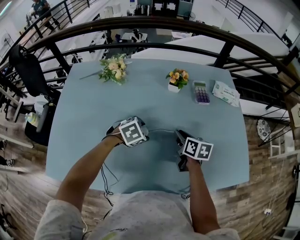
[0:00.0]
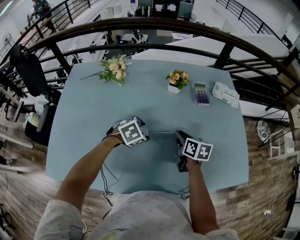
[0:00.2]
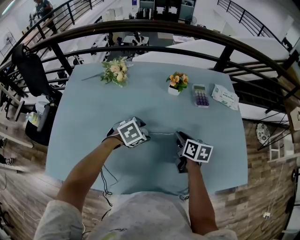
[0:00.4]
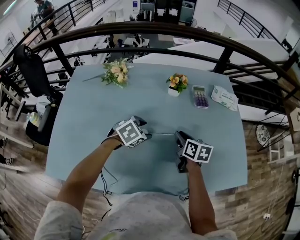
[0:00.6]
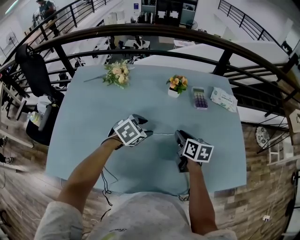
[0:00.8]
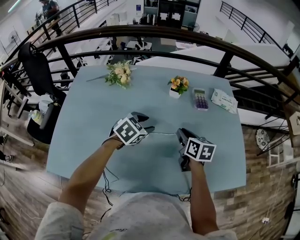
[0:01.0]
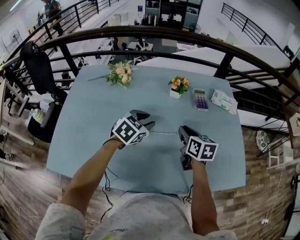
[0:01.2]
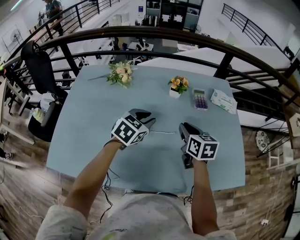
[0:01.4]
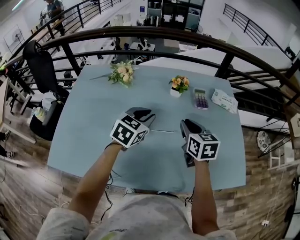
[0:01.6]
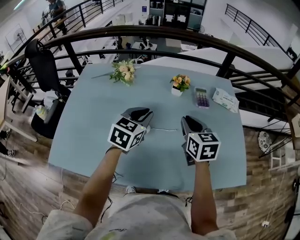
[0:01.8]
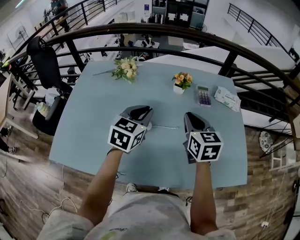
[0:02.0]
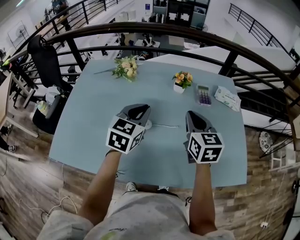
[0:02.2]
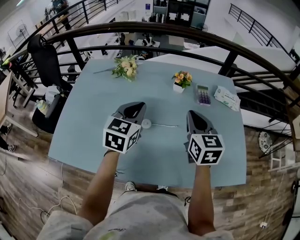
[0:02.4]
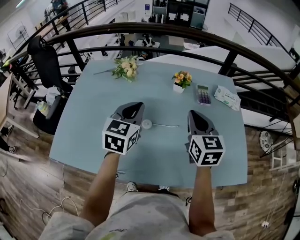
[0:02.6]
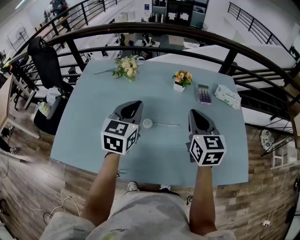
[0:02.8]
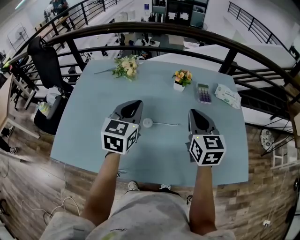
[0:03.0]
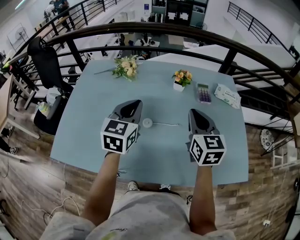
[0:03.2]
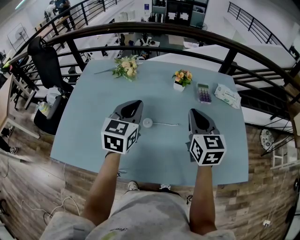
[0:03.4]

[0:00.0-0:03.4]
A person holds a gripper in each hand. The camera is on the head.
0:00.0 to 0:01.6: Both grippers travel together upward, roughly 15 cm. The right gripper rotates approximately 30 degrees; the left gripper angles its fingers upward, by approximately 30 degrees, and closes its fingers.
0:01.6 to 0:03.4: The left gripper heads upward and to the left, covering roughly 10 cm, and changes its angle by roughly 20 degrees; the right gripper heads upward, covering about 5 cm.

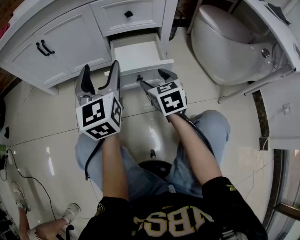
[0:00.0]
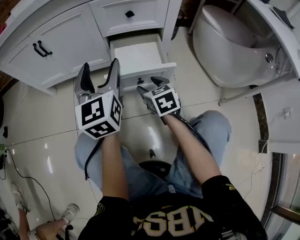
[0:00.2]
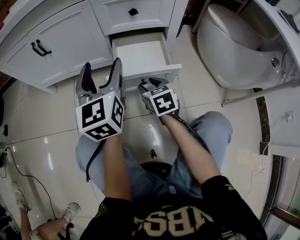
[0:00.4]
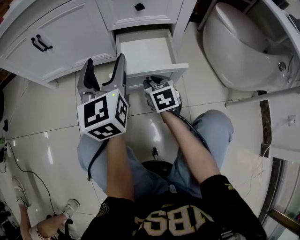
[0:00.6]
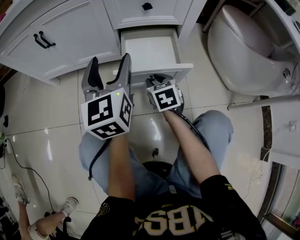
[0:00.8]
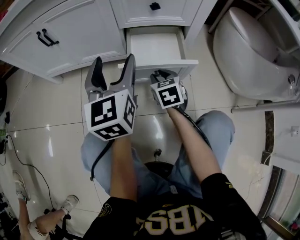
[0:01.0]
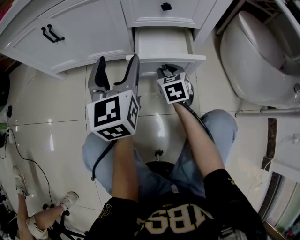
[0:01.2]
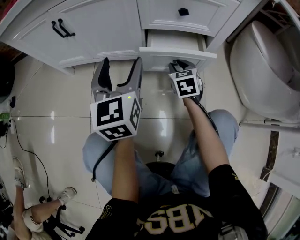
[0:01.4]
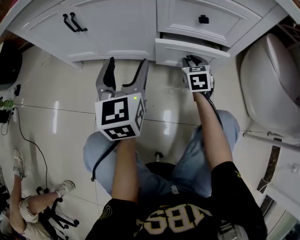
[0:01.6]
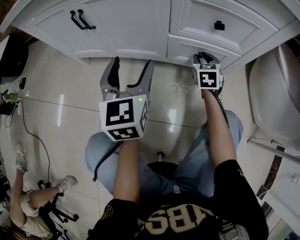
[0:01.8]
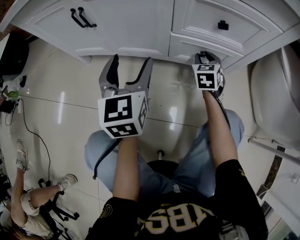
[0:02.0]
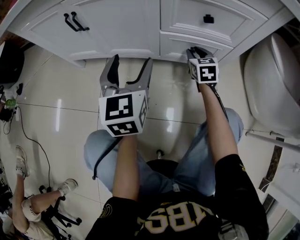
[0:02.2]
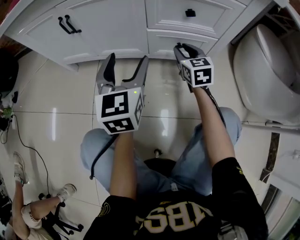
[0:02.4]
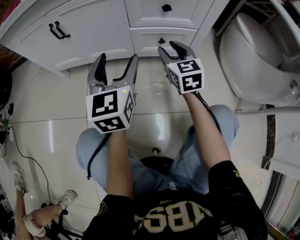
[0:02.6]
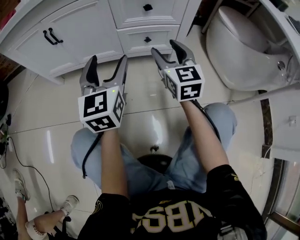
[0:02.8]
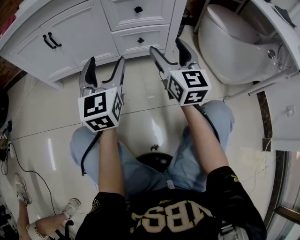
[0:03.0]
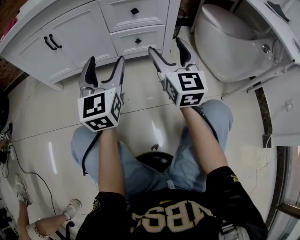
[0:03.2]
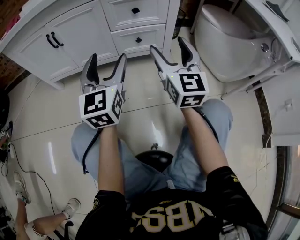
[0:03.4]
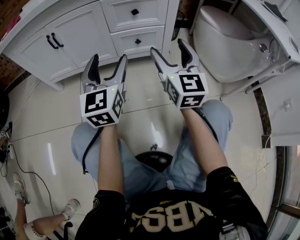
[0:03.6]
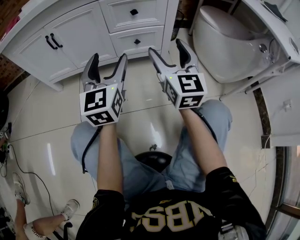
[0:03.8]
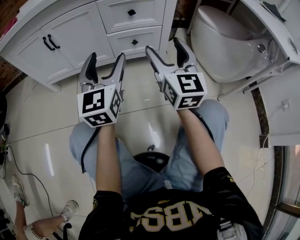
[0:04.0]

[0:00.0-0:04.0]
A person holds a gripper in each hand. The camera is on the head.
0:00.0 to 0:01.4: The right gripper shifts some 20 cm forward and downward, and closes up, while the left gripper moves forward and downward, roughly 10 cm.
0:01.4 to 0:02.6: The right gripper travels upward by some 15 cm, and turns by roughly 20 degrees.
0:02.6 to 0:04.0: The left gripper travels backward and upward by roughly 10 cm. Meanwhile the right gripper moves backward and upward, approximately 20 cm, turns by approximately 30 degrees, and opens up.

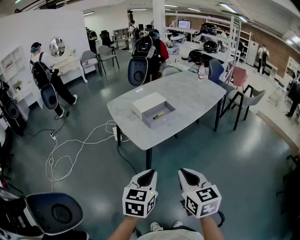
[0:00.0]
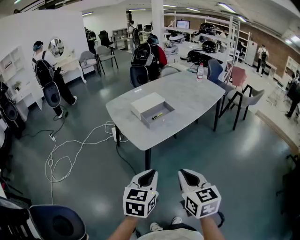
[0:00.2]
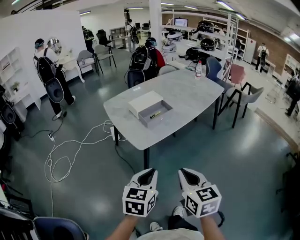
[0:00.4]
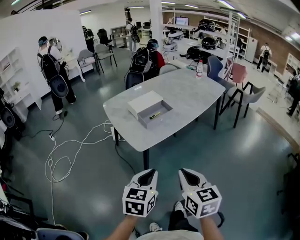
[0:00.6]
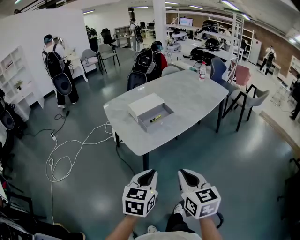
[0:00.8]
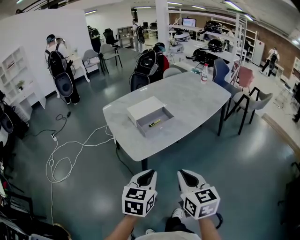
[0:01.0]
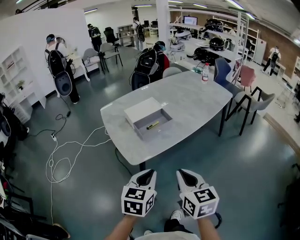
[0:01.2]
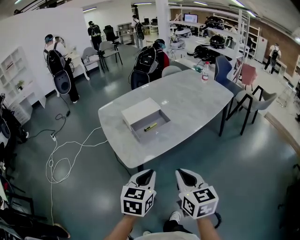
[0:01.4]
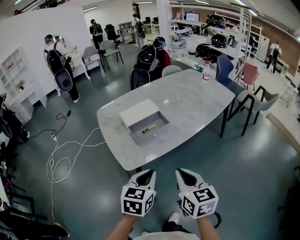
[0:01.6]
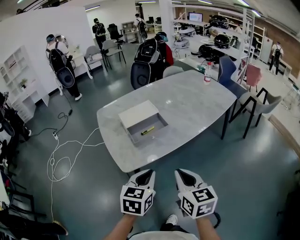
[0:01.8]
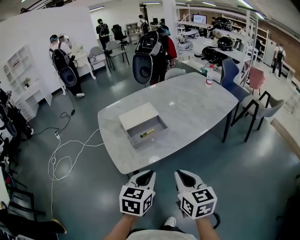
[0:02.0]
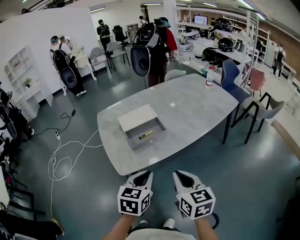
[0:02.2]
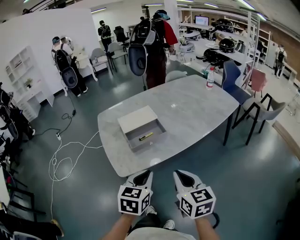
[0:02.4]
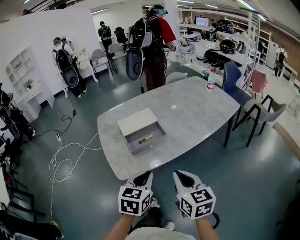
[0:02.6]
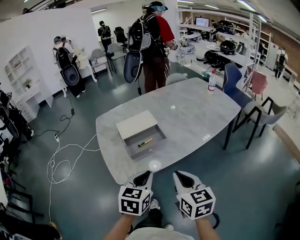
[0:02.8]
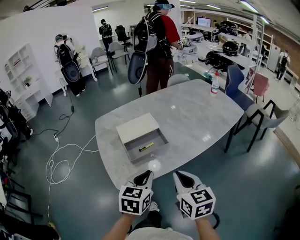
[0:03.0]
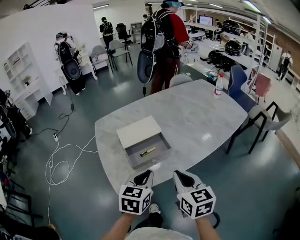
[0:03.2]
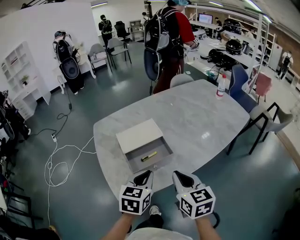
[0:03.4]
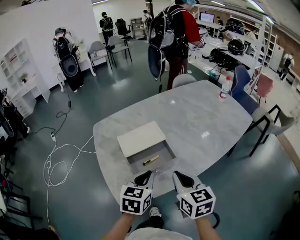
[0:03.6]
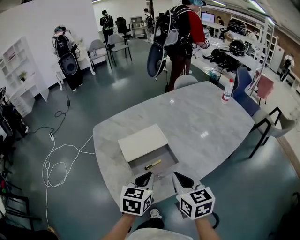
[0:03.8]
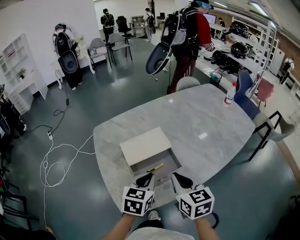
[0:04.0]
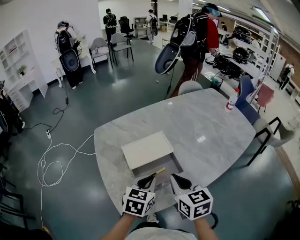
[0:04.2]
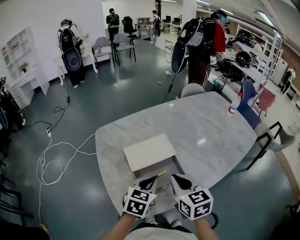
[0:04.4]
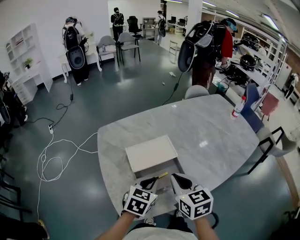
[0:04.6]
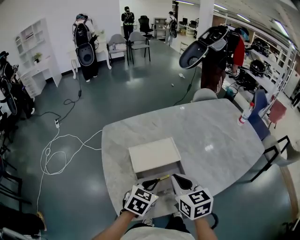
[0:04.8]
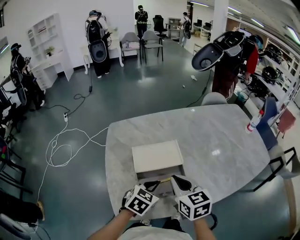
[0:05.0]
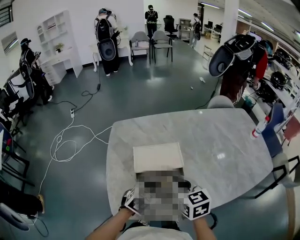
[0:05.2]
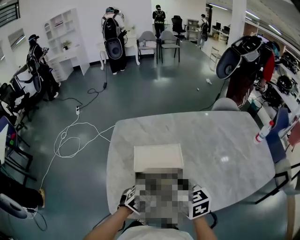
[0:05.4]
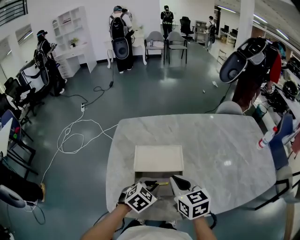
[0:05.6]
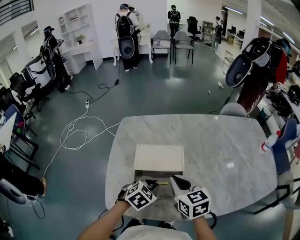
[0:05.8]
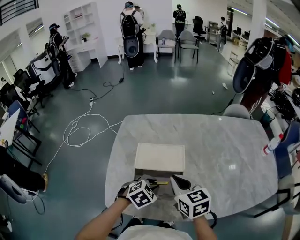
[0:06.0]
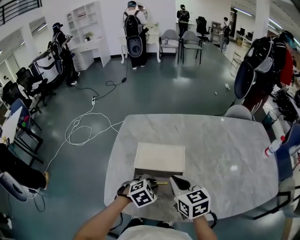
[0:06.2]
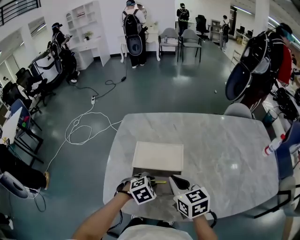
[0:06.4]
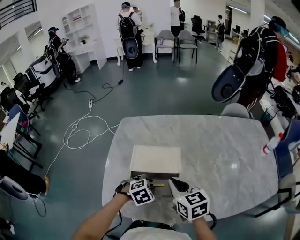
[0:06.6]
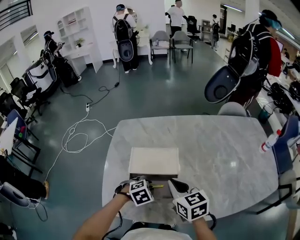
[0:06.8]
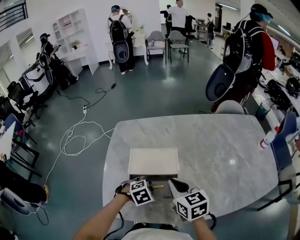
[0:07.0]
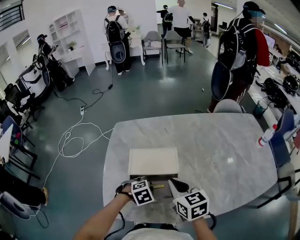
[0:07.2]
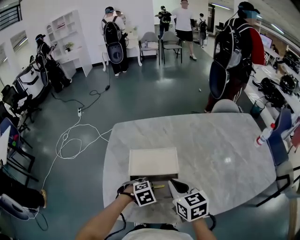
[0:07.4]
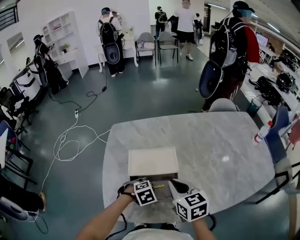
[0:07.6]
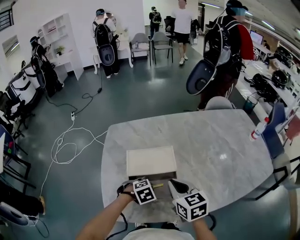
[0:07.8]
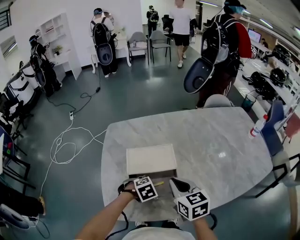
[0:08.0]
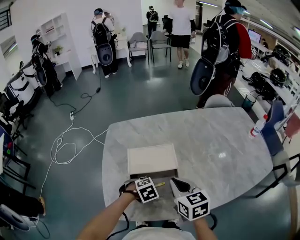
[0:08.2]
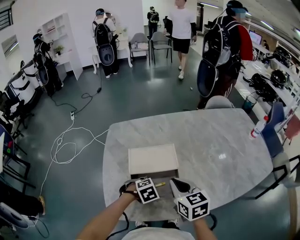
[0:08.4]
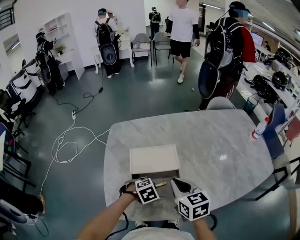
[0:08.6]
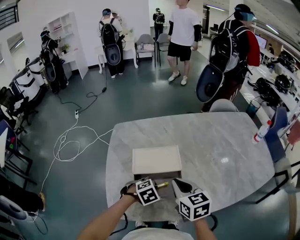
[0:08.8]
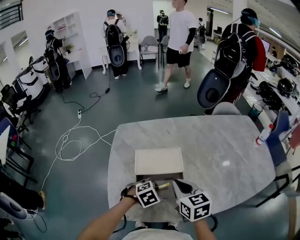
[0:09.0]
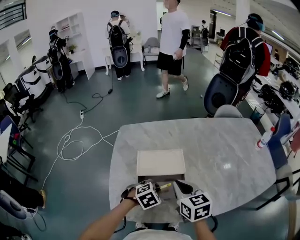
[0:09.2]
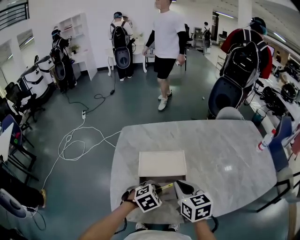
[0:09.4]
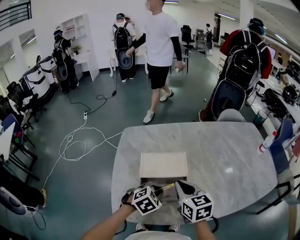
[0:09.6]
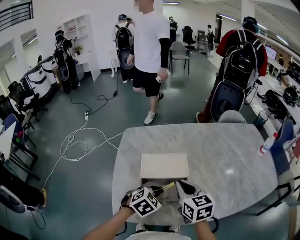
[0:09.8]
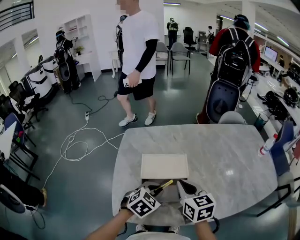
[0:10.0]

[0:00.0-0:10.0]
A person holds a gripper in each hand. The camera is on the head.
0:00.0 to 0:01.4: The two grippers go approximately 20 cm forward and to the right.
0:01.4 to 0:02.8: Both grippers travel together forward and to the right, approximately 10 cm.
0:02.8 to 0:04.2: Both grippers move forward, approximately 20 cm.
0:04.2 to 0:05.8: The left gripper moves downward, some 5 cm, and changes its angle by roughly 20 degrees; the right gripper moves forward, some 10 cm, and changes its angle by some 30 degrees.
0:05.8 to 0:07.2: The left gripper shifts about 5 cm downward, and turns by about 30 degrees.
0:07.2 to 0:08.6: The grippers move only a little.
0:08.6 to 0:10.0: The left gripper heads upward, covering roughly 10 cm, and rotates approximately 30 degrees.

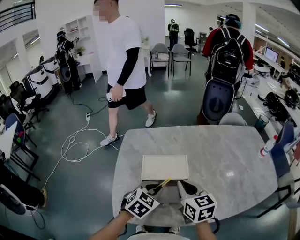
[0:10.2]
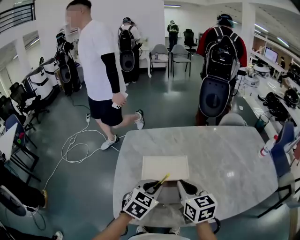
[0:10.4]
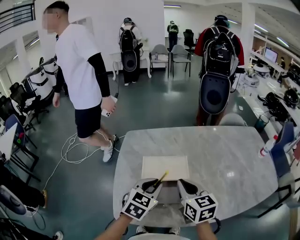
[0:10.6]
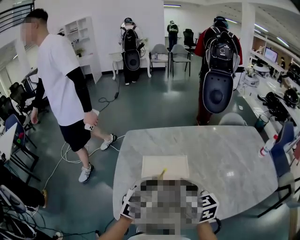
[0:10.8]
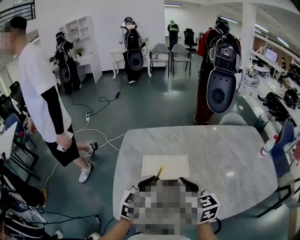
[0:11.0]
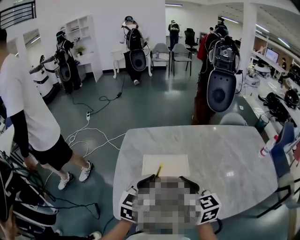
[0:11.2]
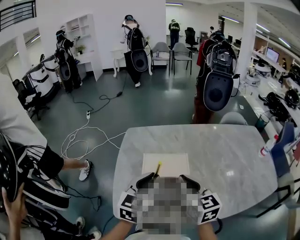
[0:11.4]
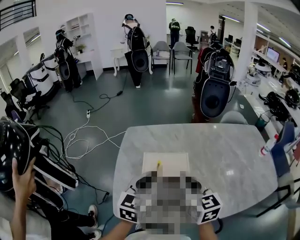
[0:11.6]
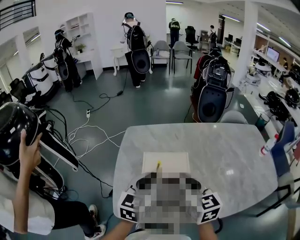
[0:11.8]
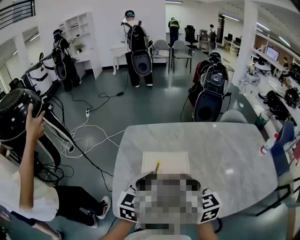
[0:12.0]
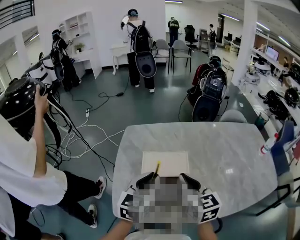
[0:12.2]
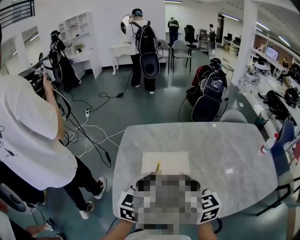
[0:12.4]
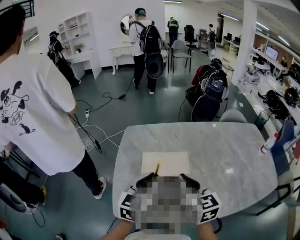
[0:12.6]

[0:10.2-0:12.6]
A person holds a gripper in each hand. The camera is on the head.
0:10.2 to 0:11.4: The left gripper moves upward, about 10 cm, and swivels about 30 degrees.
0:11.4 to 0:12.6: The grippers move only a little.

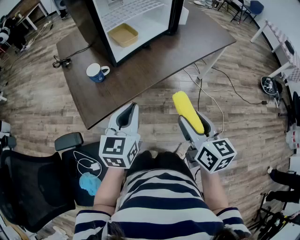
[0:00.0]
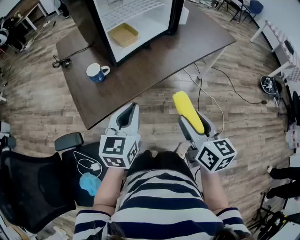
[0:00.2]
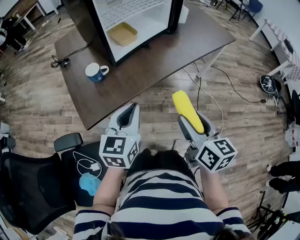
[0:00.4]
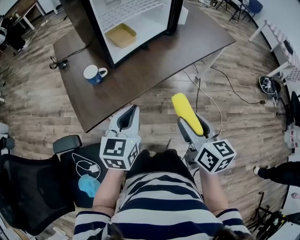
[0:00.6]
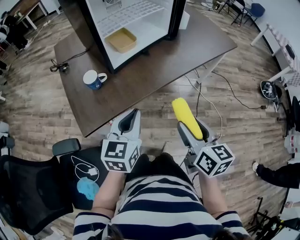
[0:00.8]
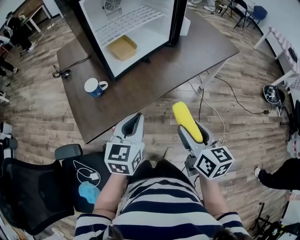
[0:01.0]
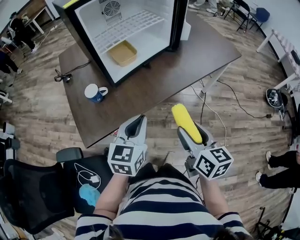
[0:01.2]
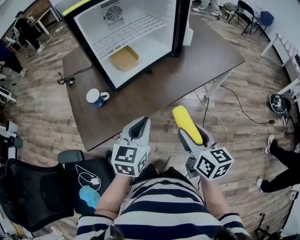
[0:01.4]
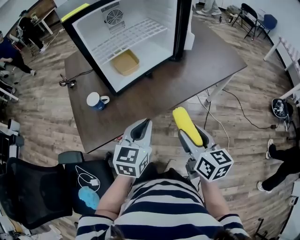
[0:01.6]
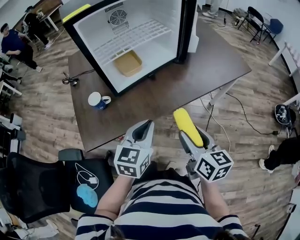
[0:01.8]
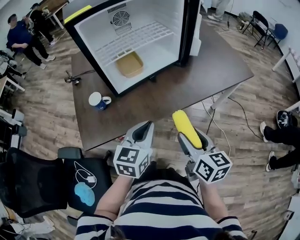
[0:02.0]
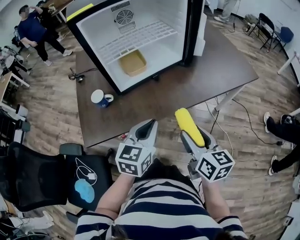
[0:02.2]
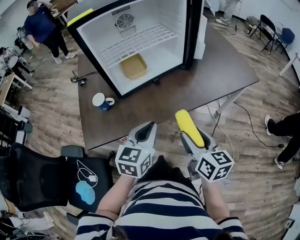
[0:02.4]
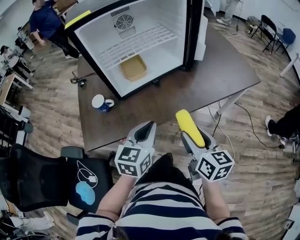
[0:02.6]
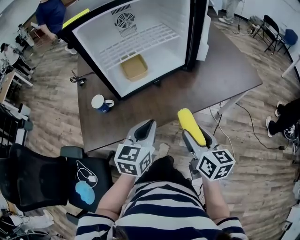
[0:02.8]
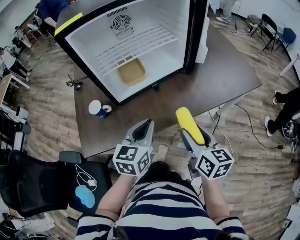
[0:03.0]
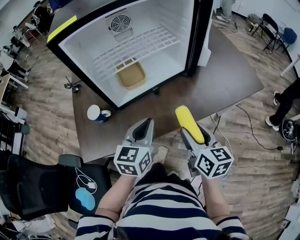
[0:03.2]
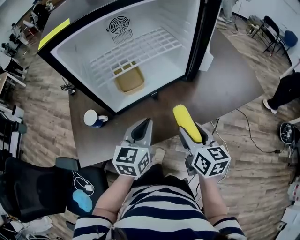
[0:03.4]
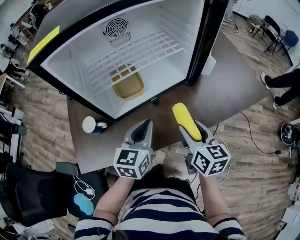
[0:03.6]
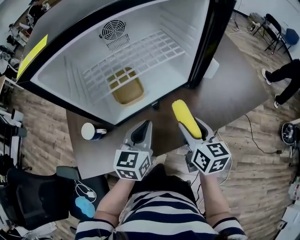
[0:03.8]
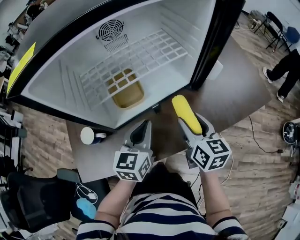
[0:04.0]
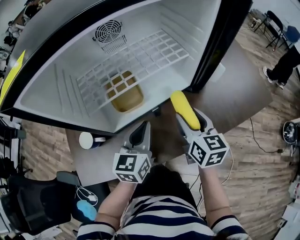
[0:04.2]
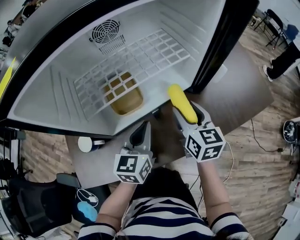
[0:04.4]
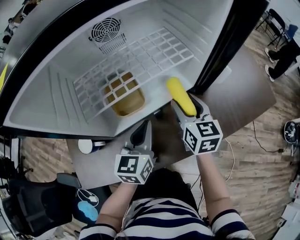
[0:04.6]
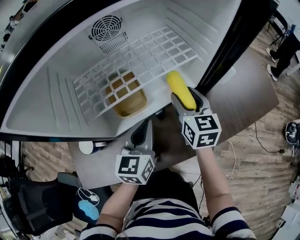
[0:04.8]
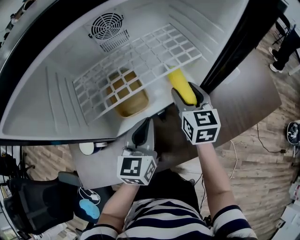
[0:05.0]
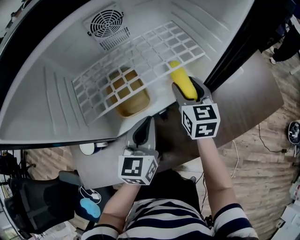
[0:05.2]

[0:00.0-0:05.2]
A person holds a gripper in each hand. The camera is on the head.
0:00.0 to 0:01.8: The grippers both shift forward and to the right by roughly 15 cm.
0:01.8 to 0:03.4: The grippers both shift forward by roughly 15 cm.
0:03.4 to 0:05.2: The right gripper shifts approximately 30 cm forward, while the left gripper travels forward by about 15 cm.
